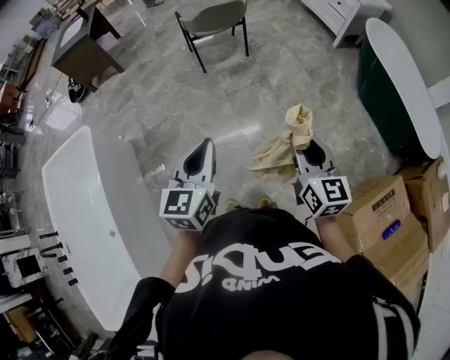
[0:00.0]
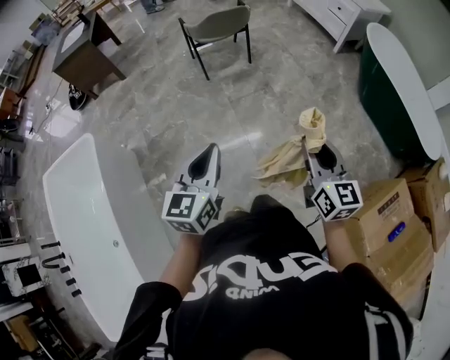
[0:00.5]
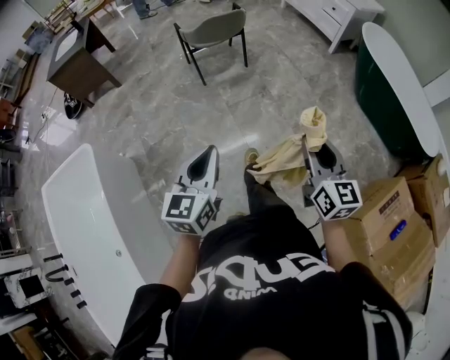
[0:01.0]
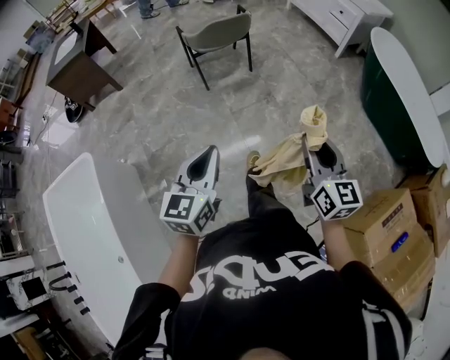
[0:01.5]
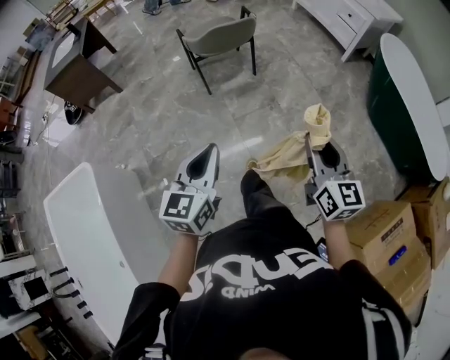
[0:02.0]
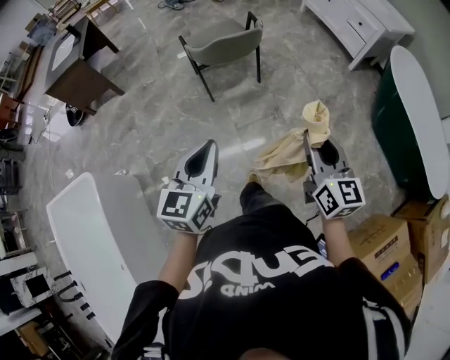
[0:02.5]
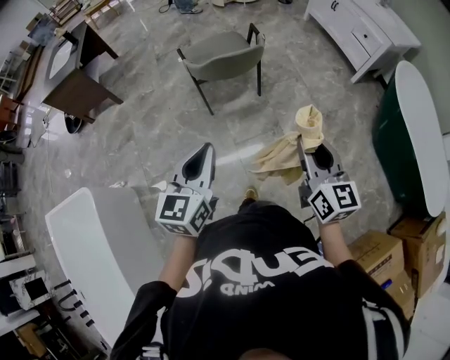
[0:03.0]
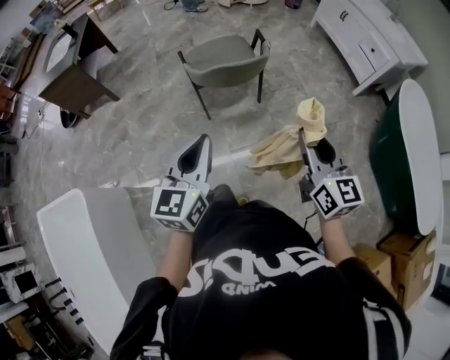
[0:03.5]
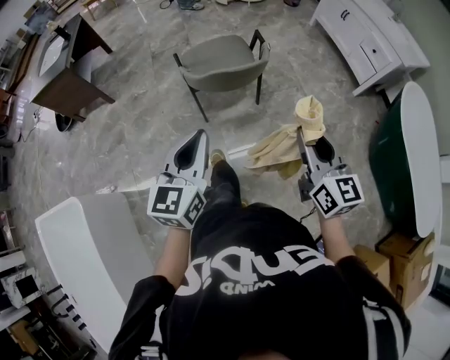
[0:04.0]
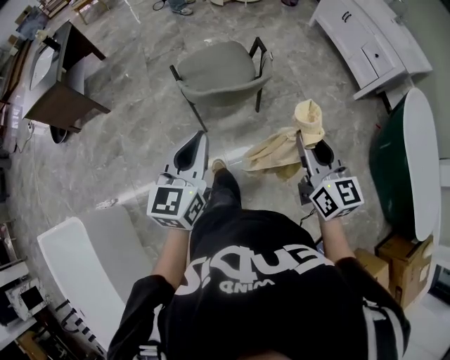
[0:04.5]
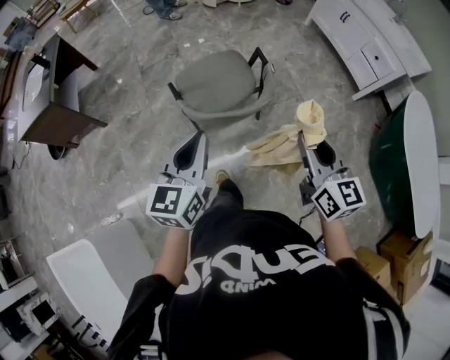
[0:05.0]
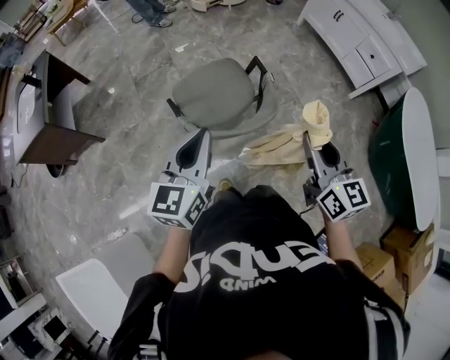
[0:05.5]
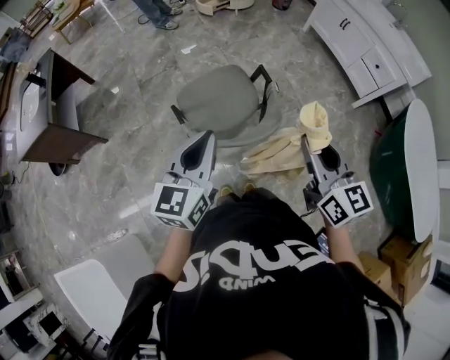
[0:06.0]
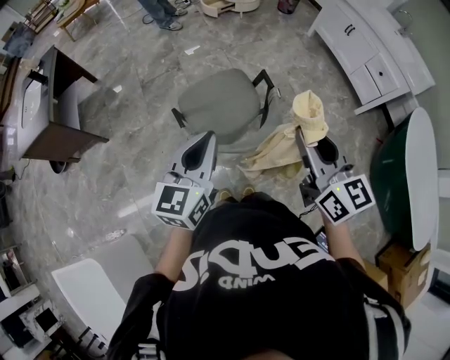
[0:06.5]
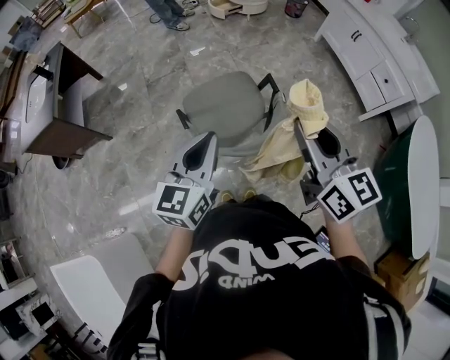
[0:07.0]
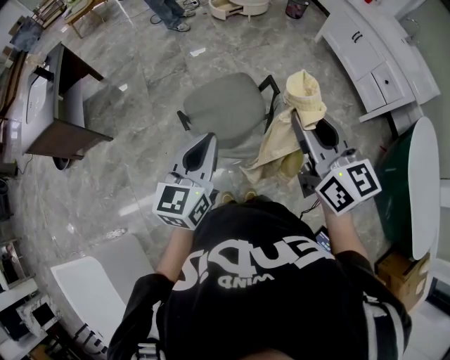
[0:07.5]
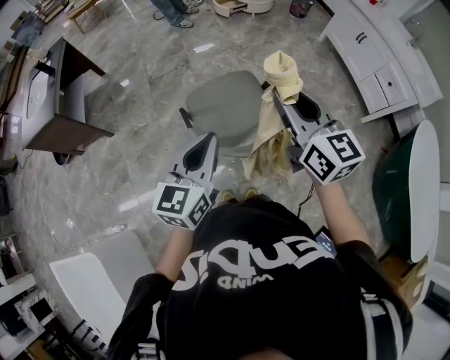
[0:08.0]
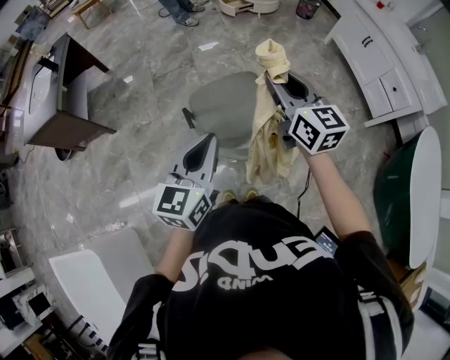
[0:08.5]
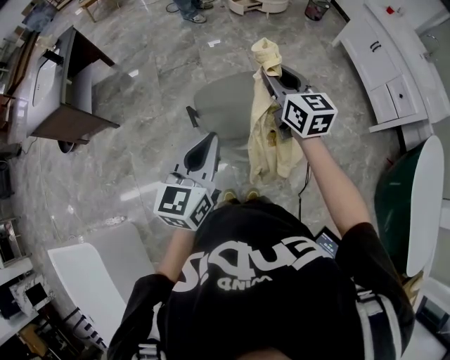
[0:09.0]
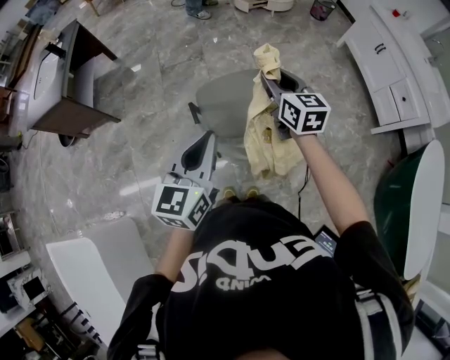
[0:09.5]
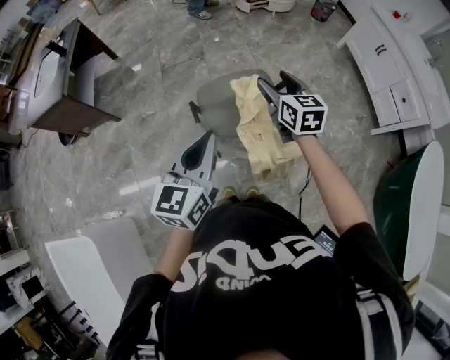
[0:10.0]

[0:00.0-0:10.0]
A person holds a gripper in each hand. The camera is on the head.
0:00.0 to 0:02.0: Both grippers travel together forward, about 20 cm.
0:02.0 to 0:04.0: Both grippers travel together forward, some 40 cm.
0:04.0 to 0:06.0: The grippers both shift forward by roughly 30 cm.
0:06.0 to 0:08.0: The right gripper shifts approximately 15 cm forward and to the left.
0:08.0 to 0:10.0: The right gripper heads downward and forward, covering roughly 20 cm, and opens up.

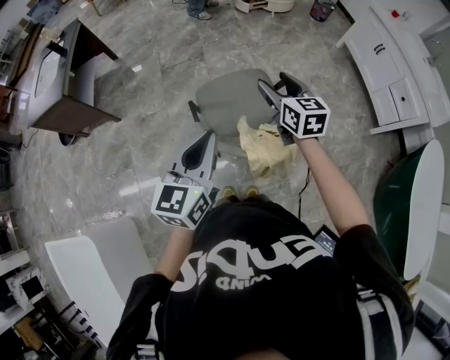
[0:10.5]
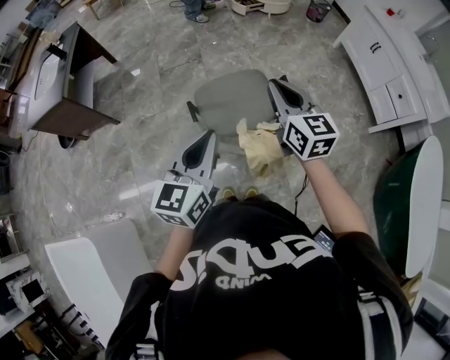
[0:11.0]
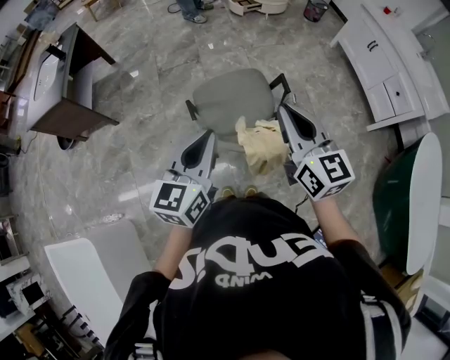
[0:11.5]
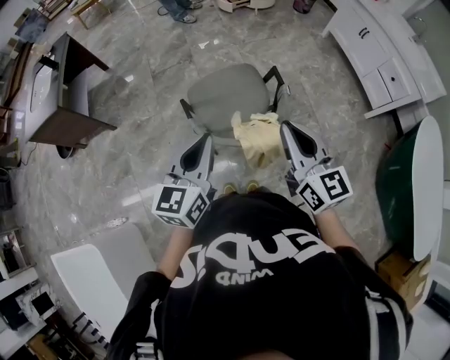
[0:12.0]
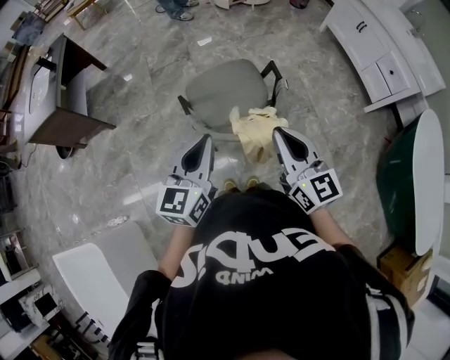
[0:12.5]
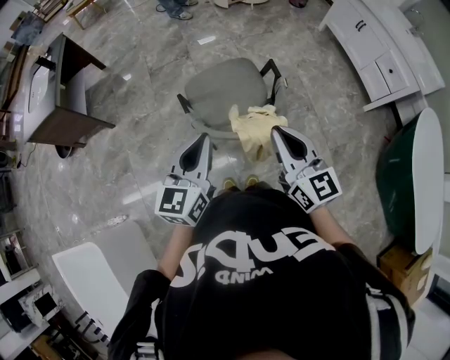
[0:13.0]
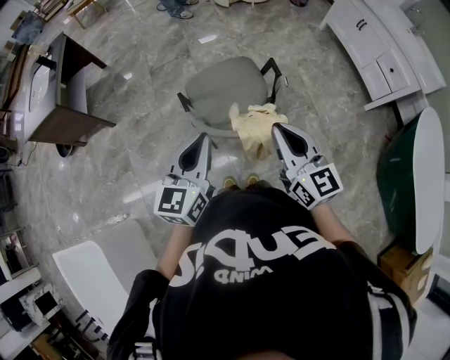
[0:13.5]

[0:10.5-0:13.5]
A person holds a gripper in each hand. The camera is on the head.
0:10.5 to 0:12.0: The right gripper travels backward by roughly 20 cm, and closes its fingers.
0:12.0 to 0:13.5: There are only small adjustments of the grippers.

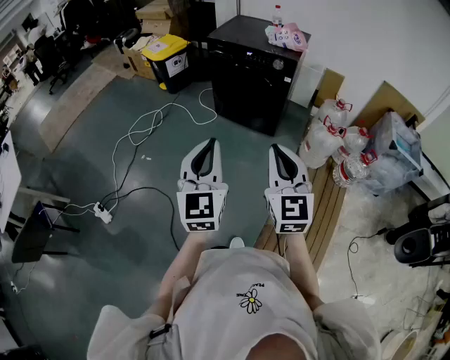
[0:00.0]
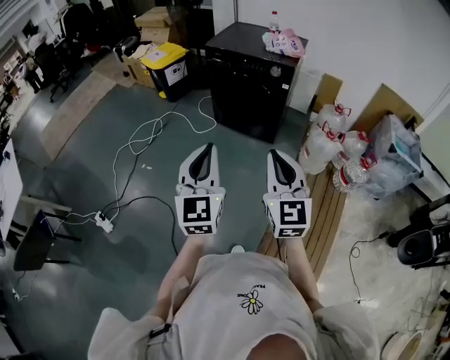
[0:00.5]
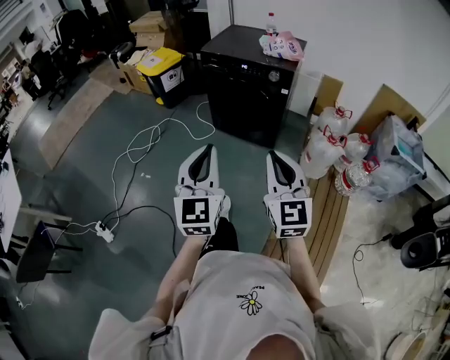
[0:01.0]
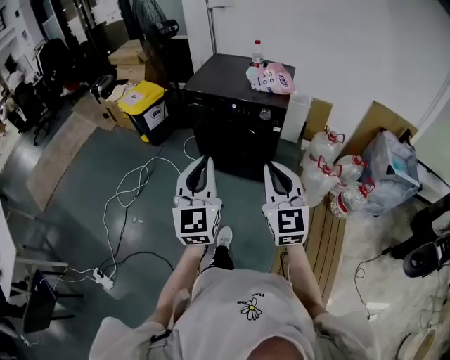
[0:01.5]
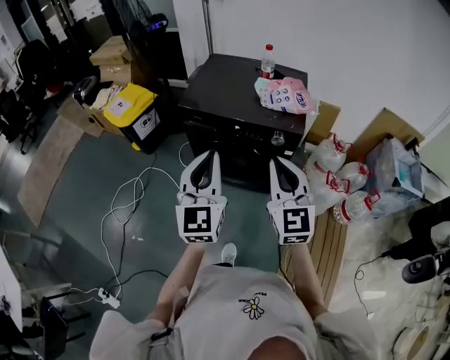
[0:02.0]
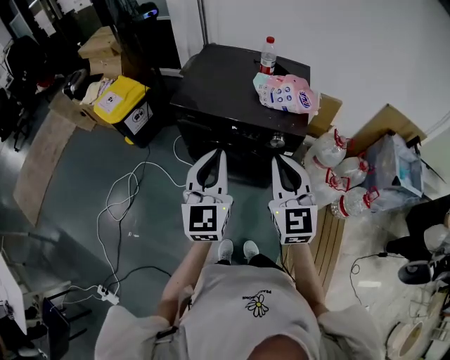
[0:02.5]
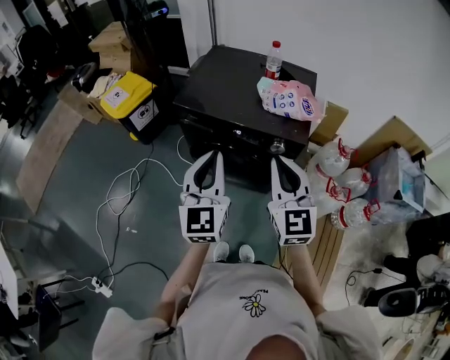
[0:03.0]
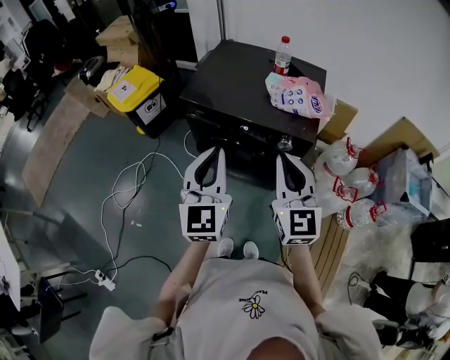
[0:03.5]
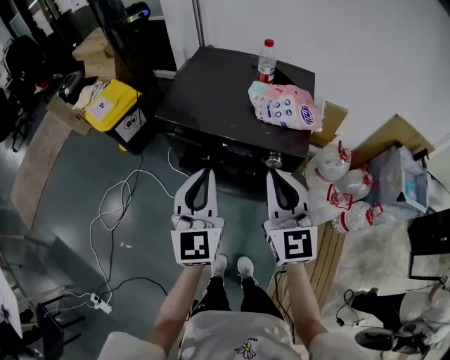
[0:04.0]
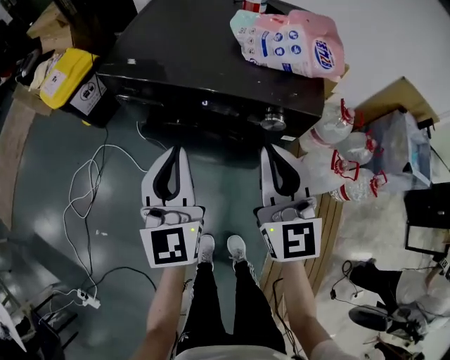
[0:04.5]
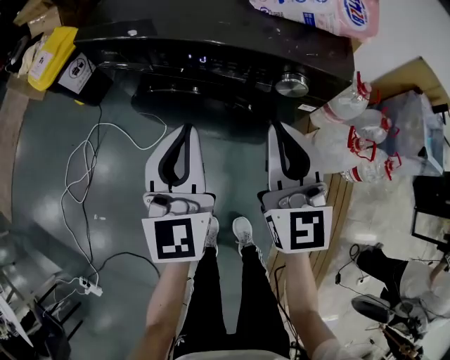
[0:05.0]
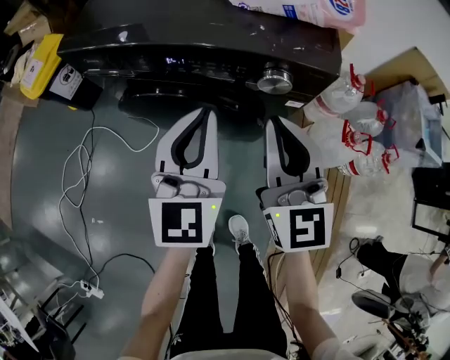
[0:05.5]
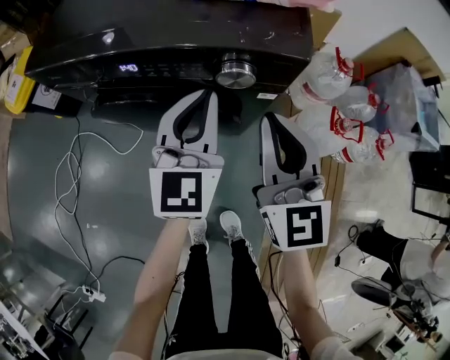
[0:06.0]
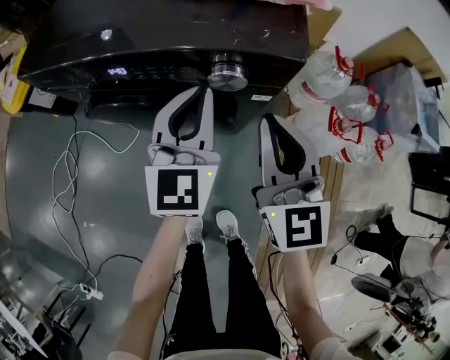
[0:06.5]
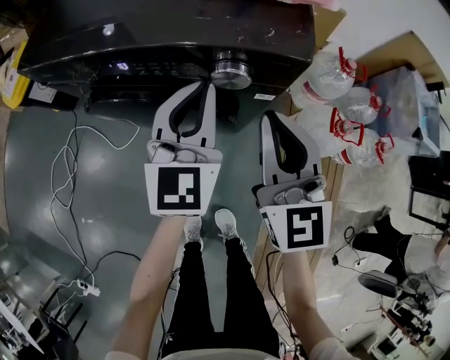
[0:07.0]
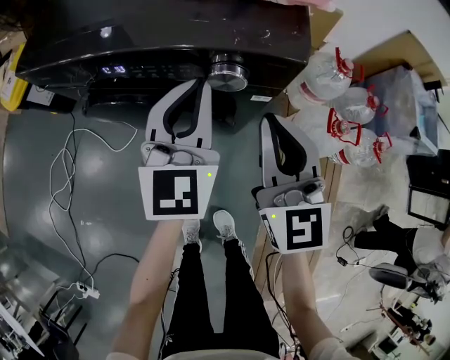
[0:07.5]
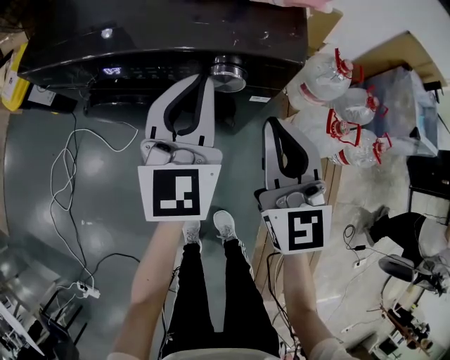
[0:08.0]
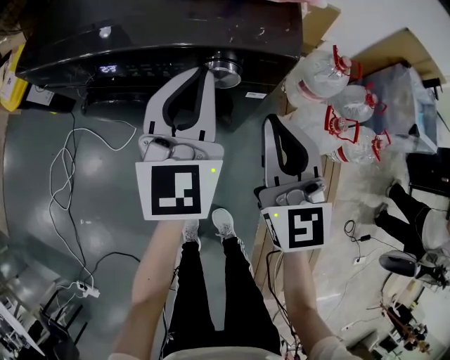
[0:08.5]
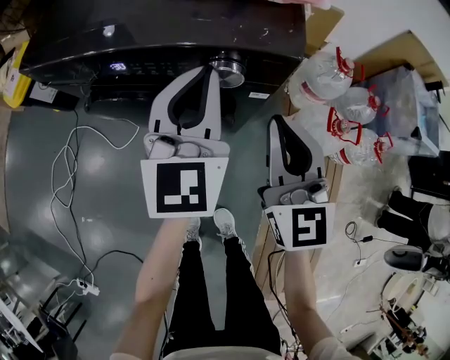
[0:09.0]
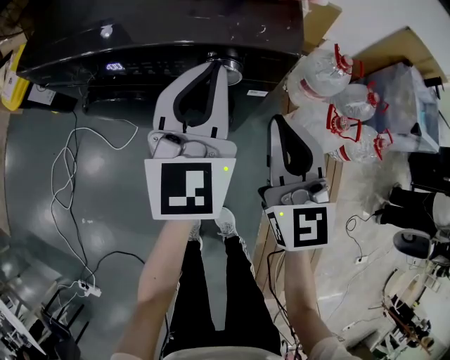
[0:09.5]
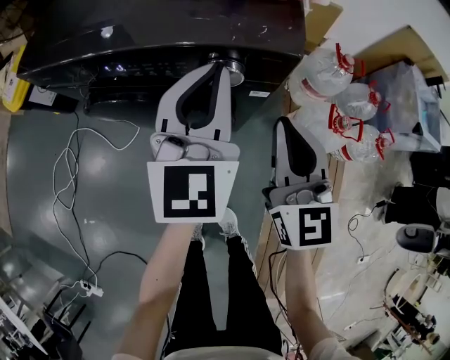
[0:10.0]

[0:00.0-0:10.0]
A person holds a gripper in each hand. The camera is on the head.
0:00.0 to 0:02.0: Both grippers are carried forward, roughly 50 cm.
0:02.0 to 0:04.0: The right gripper moves forward, some 10 cm. Meanwhile the left gripper is displaced forward, downward and to the right by about 15 cm.
0:04.0 to 0:06.0: The left gripper travels downward, to the right and forward by approximately 30 cm; the right gripper travels downward and to the right by roughly 25 cm.
0:06.0 to 0:08.0: There are only small adjustments of the grippers.
0:08.0 to 0:10.0: The grippers move only a little.

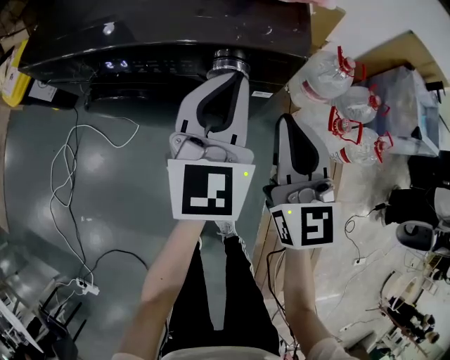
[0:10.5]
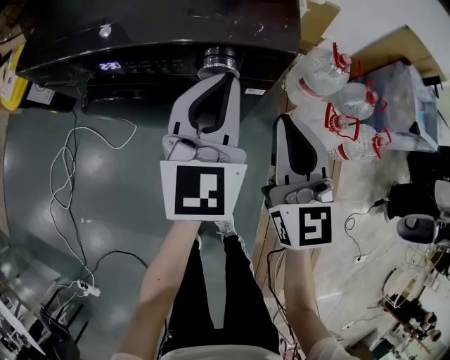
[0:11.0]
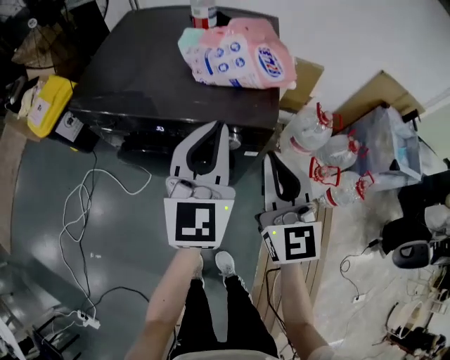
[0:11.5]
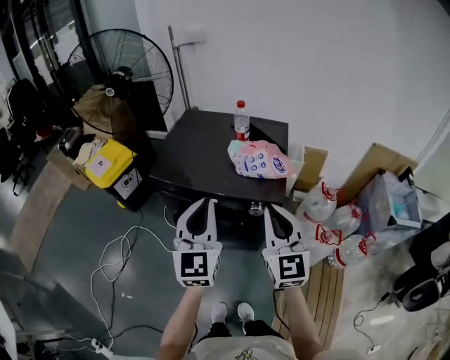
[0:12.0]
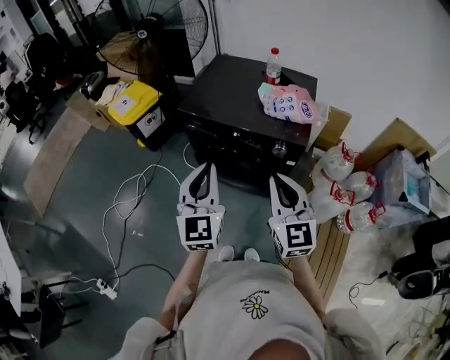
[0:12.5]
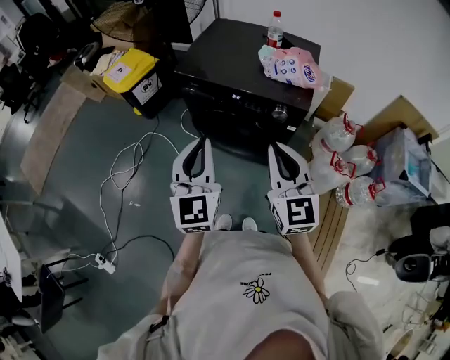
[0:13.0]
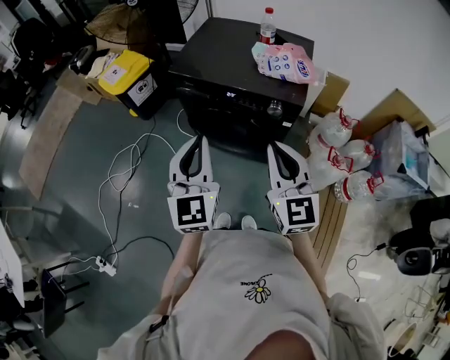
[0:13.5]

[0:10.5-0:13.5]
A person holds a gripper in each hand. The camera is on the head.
0:10.5 to 0:12.0: The left gripper shifts some 30 cm upward and to the left. Meanwhile the right gripper travels upward by approximately 30 cm.
0:12.0 to 0:13.5: The two grippers go approximately 15 cm backward and to the left.
